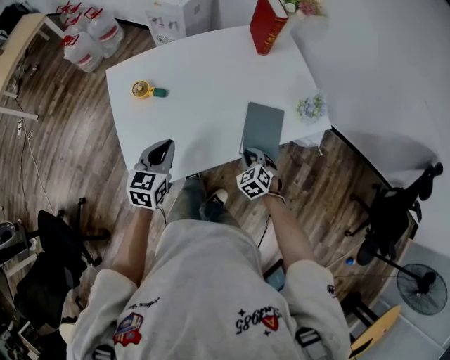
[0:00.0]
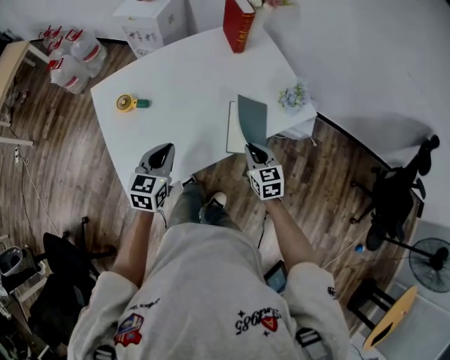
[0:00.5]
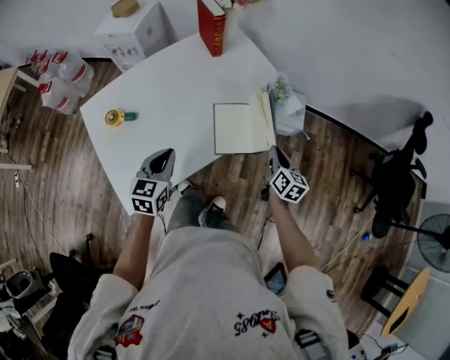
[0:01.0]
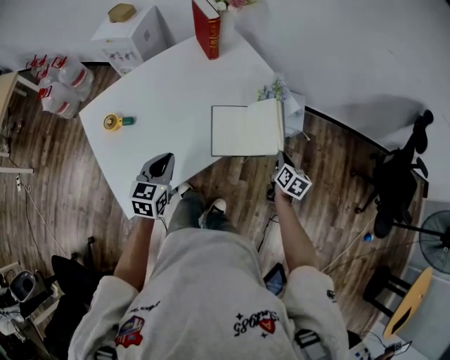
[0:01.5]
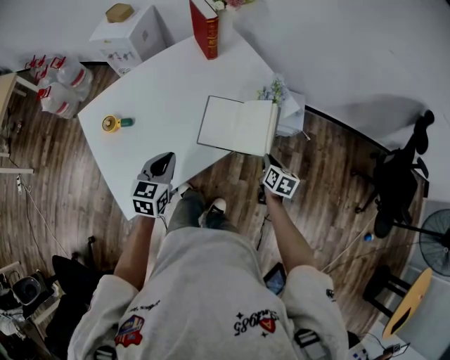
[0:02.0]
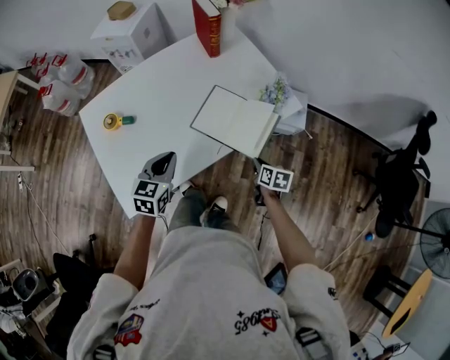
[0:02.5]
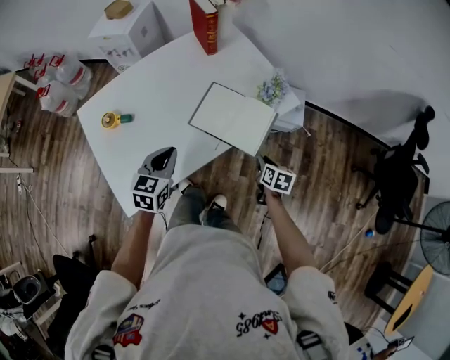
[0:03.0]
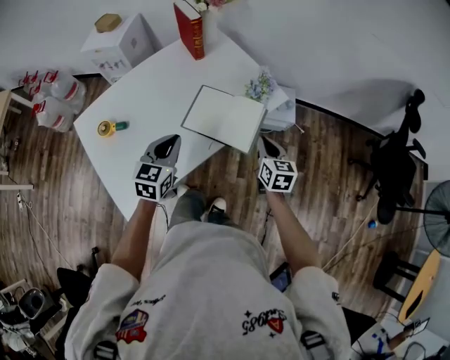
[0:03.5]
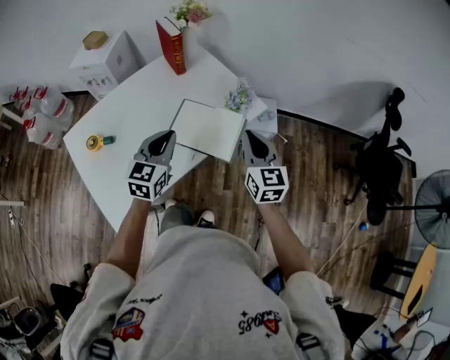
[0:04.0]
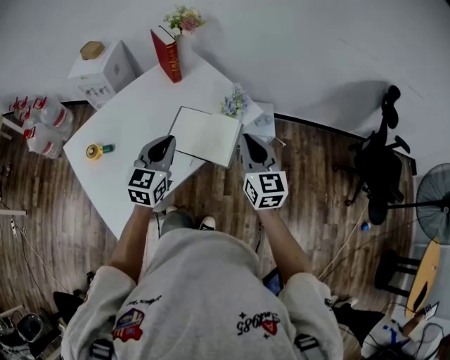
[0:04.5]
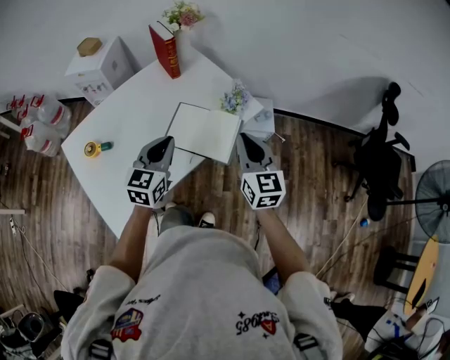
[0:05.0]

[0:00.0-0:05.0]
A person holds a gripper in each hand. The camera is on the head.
0:00.0 to 0:02.5: The grippers both shift to the right by roughly 15 cm. The right gripper twists approximately 70 degrees clockwise, seen from behind.
0:02.5 to 0:05.0: The left gripper heads upward and to the right, covering some 15 cm. Meanwhile the right gripper is displaced upward by roughly 30 cm, and angles its fingers upward, by approximately 40 degrees.

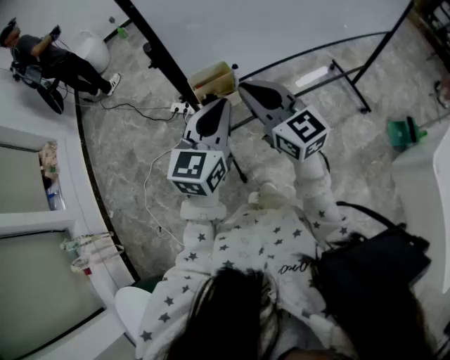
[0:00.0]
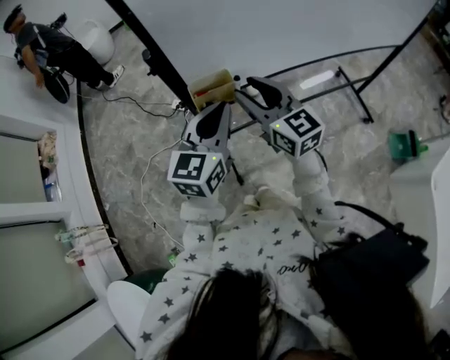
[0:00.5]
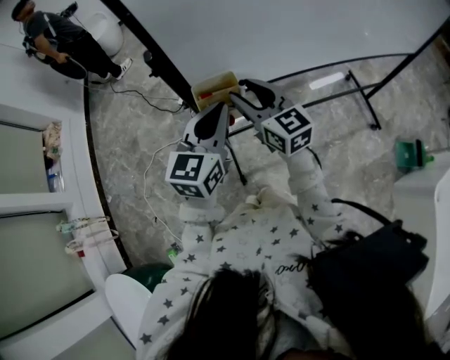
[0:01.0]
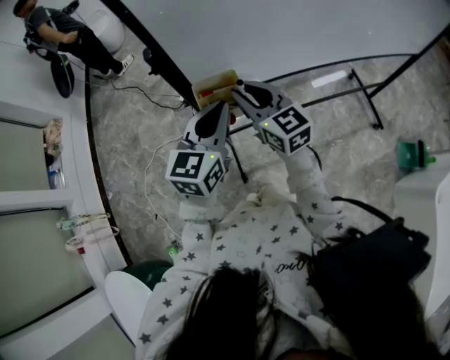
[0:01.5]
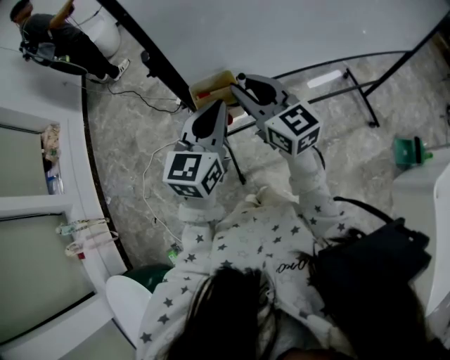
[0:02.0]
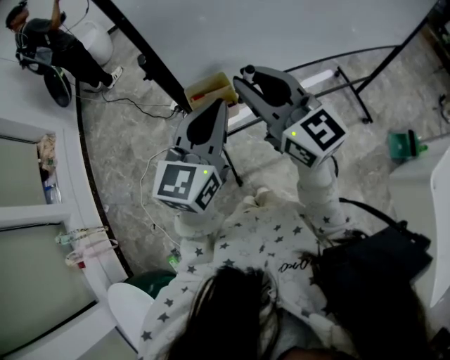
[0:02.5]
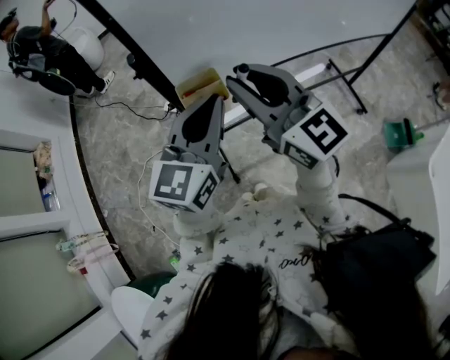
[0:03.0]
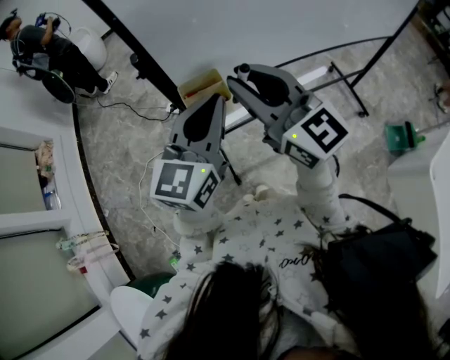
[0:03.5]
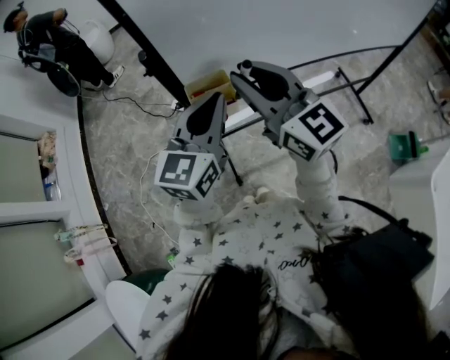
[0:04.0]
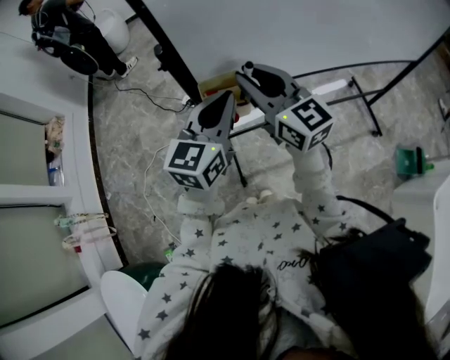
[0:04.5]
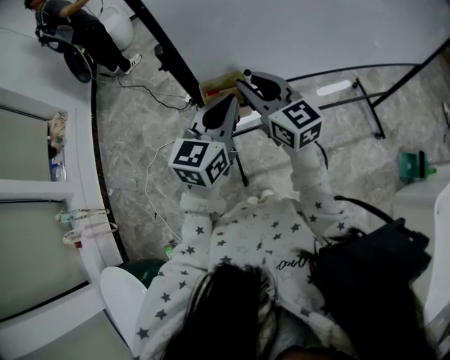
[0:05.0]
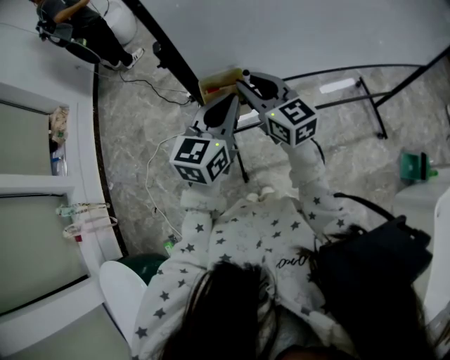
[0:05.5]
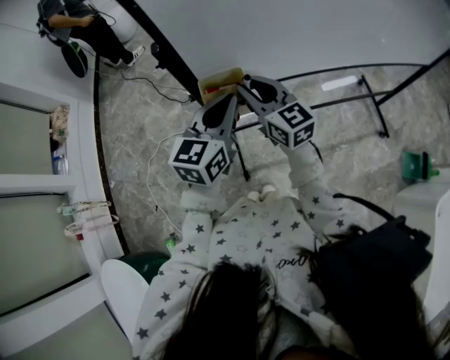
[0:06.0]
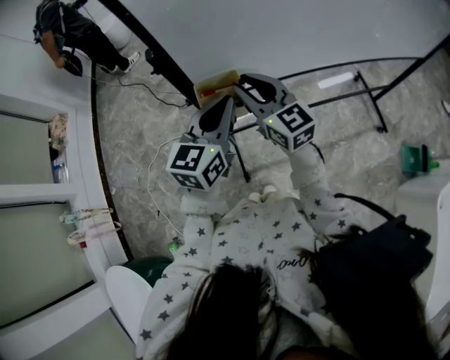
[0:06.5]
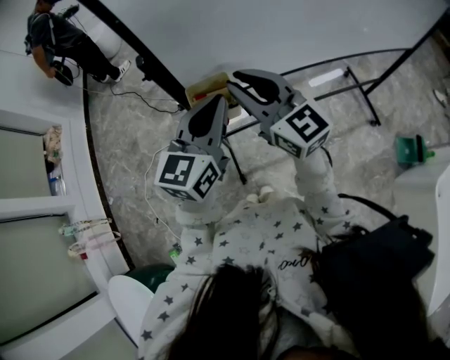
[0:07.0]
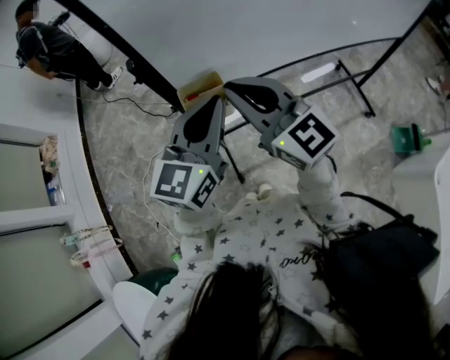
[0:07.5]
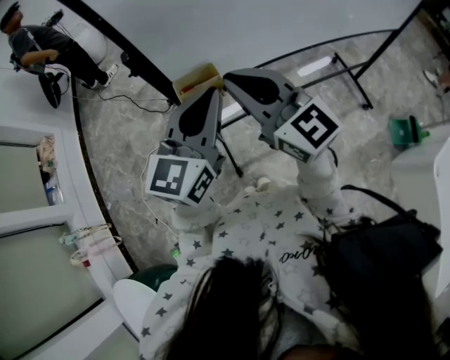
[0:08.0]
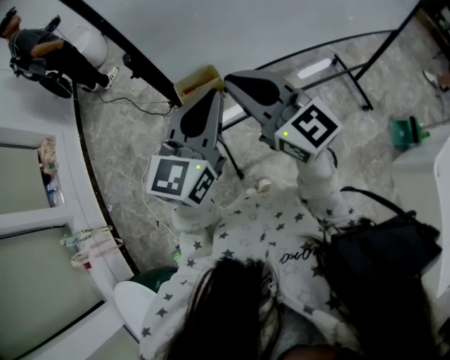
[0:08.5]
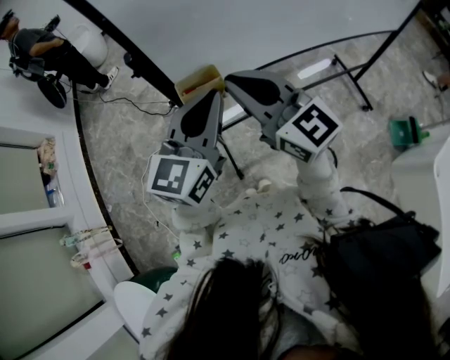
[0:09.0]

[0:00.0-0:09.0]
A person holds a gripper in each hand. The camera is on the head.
0:00.0 to 0:02.0: The right gripper opens, then closes once more.
0:04.5 to 0:07.0: The right gripper goes downward and returns, about 10 cm each way.
0:07.0 to 0:09.0: The grippers make only small movements.

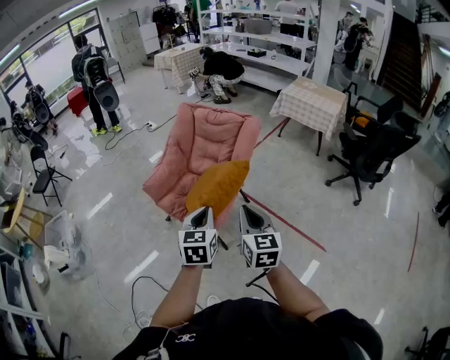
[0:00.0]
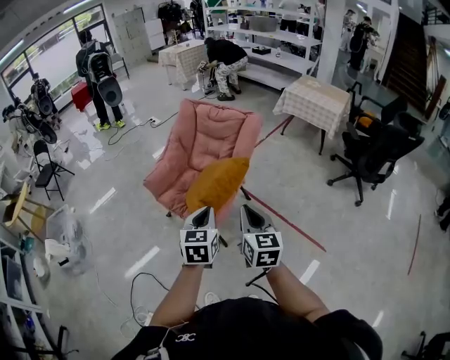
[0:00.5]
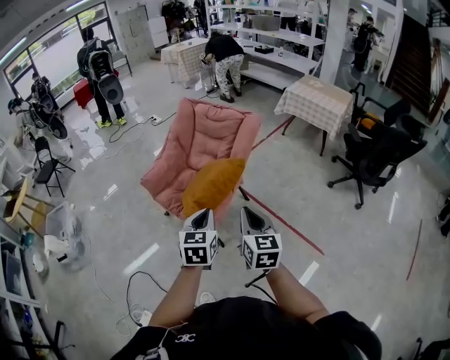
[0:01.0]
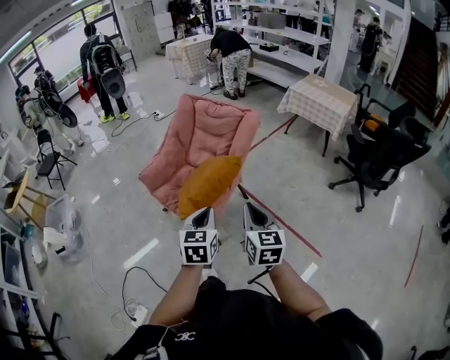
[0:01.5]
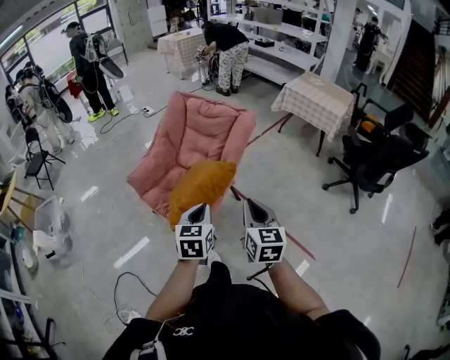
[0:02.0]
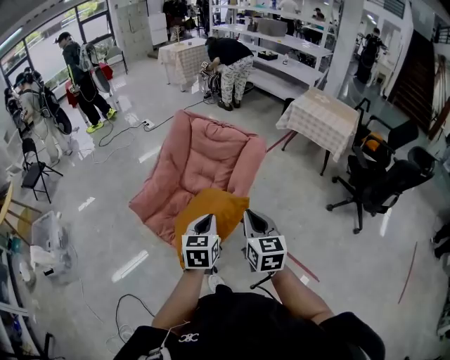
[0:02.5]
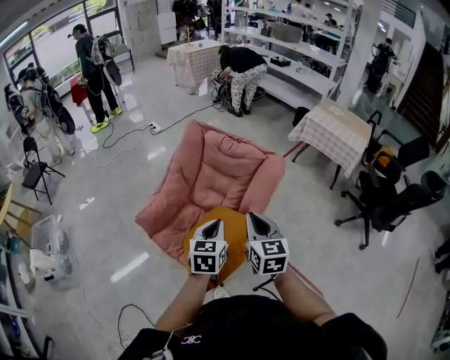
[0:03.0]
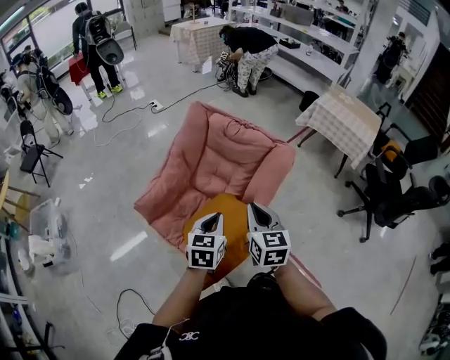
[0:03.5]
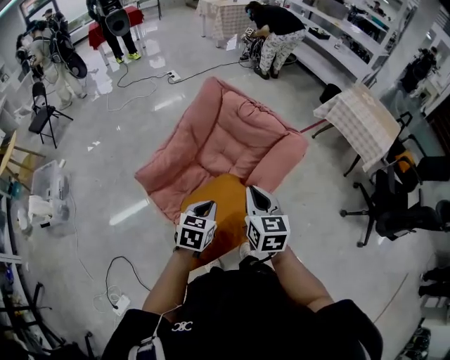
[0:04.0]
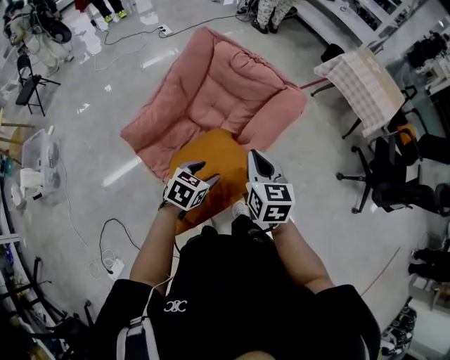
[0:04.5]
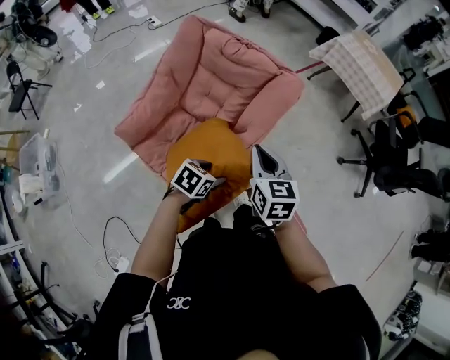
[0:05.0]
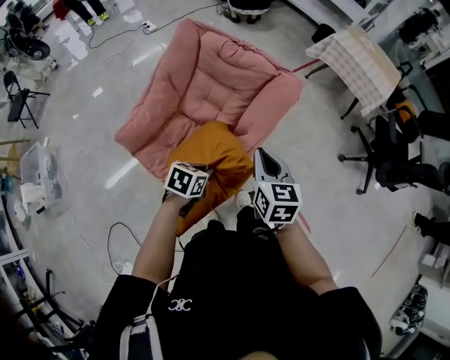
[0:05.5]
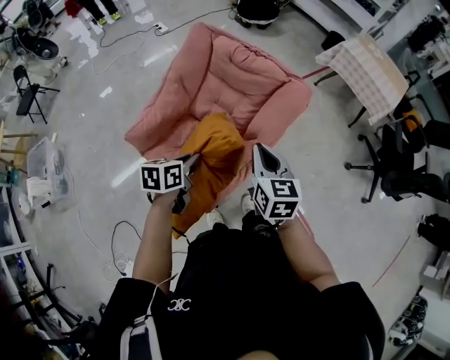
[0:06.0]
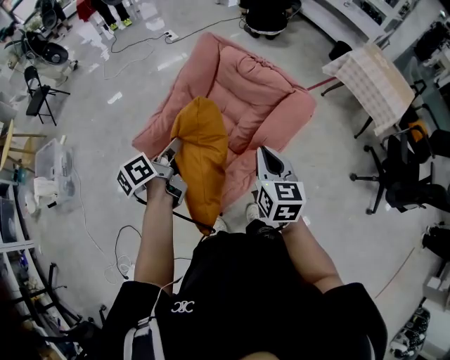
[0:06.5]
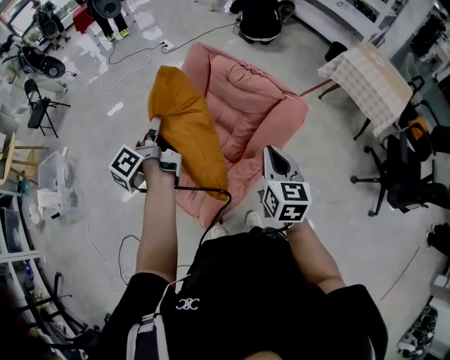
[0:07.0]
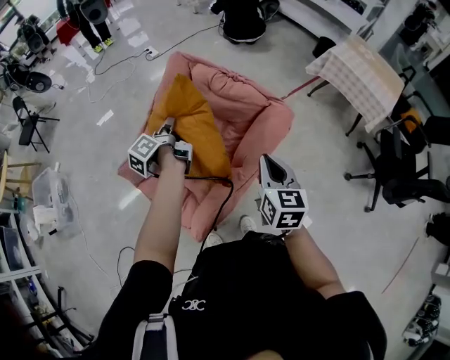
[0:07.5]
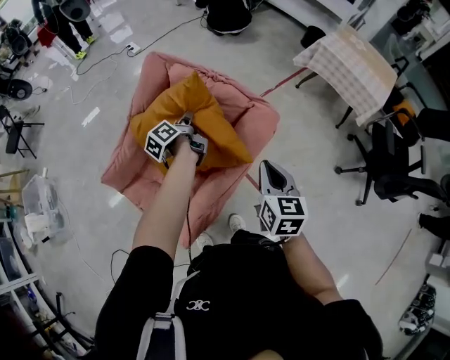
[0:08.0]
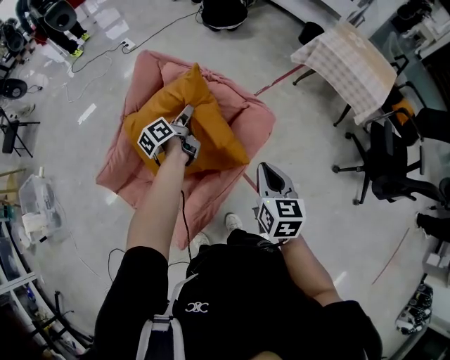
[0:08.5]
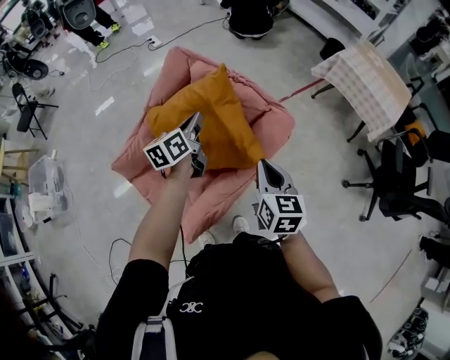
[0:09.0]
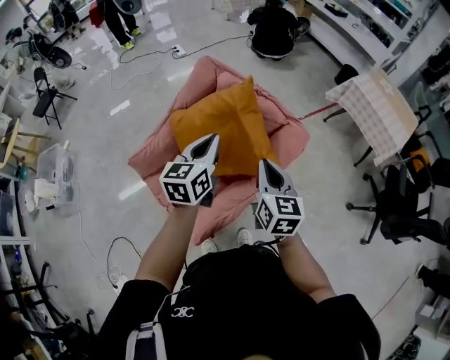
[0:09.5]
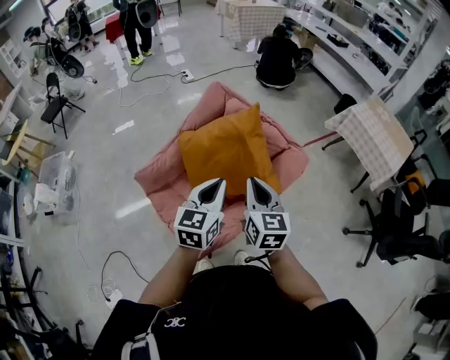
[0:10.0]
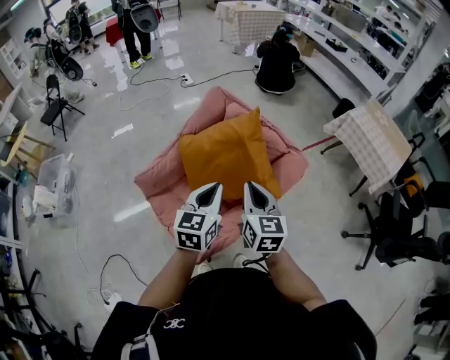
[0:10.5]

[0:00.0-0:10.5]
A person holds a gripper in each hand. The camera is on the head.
0:00.0 to 0:02.0: The right gripper moves to the right and forward, approximately 15 cm; the left gripper is displaced forward, to the right and downward by about 10 cm.
0:02.0 to 0:04.0: The right gripper is displaced forward and to the left by approximately 30 cm. Meanwhile the left gripper heads forward, covering about 25 cm.
0:04.0 to 0:06.5: The left gripper moves about 15 cm, rolls counterclockwise, seen from behind, by roughly 60 degrees, and opens, then closes once more.
0:06.5 to 0:08.5: The left gripper travels forward and to the right by approximately 35 cm, and opens its fingers. Meanwhile the right gripper moves to the right and forward, approximately 20 cm.
0:08.5 to 0:10.5: The left gripper shifts approximately 30 cm backward and upward, rolls clockwise, seen from behind, by roughly 60 degrees, and closes its fingers; the right gripper shifts some 20 cm to the left and upward.

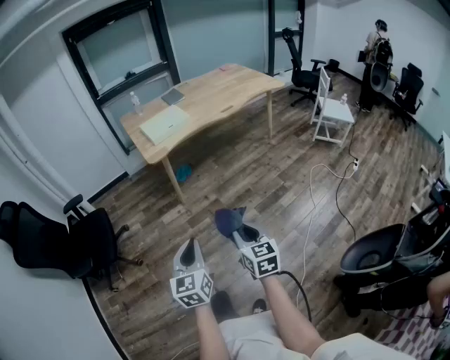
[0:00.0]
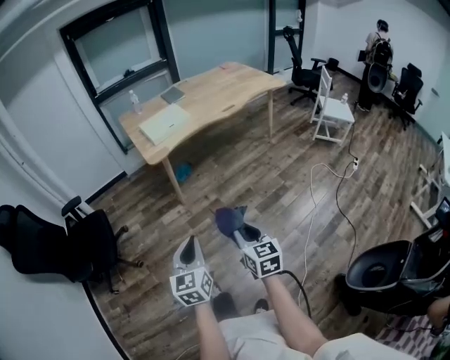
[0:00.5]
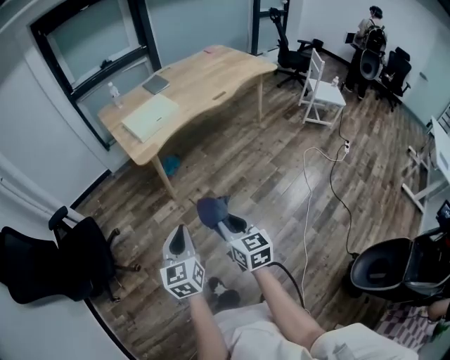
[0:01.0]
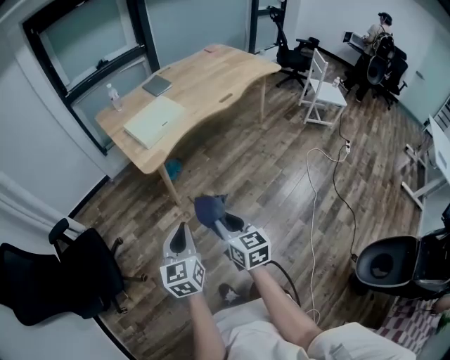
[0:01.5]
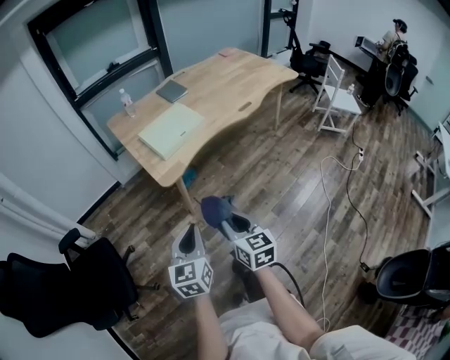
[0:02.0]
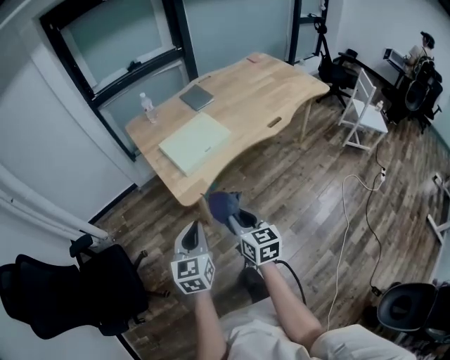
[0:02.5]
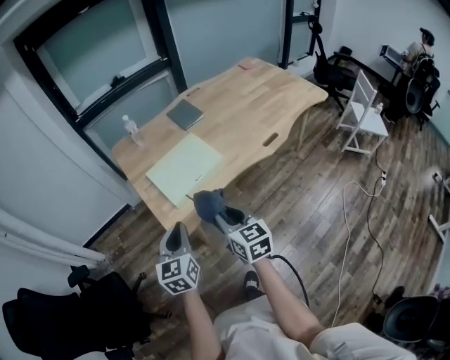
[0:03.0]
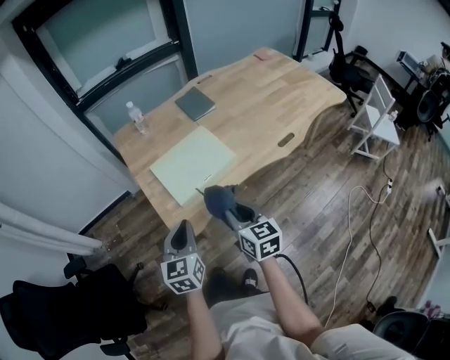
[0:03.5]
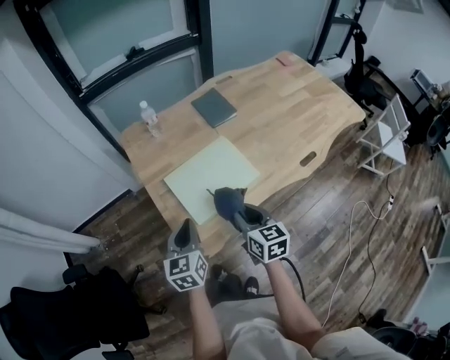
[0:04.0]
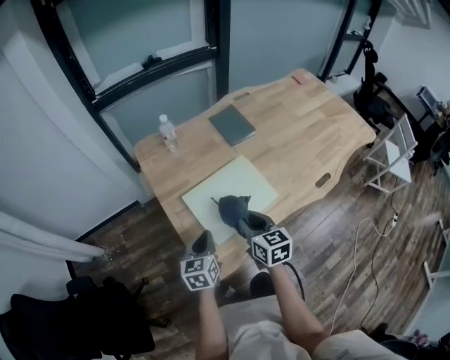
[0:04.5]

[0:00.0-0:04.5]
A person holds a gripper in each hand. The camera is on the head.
0:00.0 to 0:02.0: The grippers both shift forward and to the left by about 40 cm.
0:02.0 to 0:04.5: Both grippers are carried forward, approximately 50 cm.
